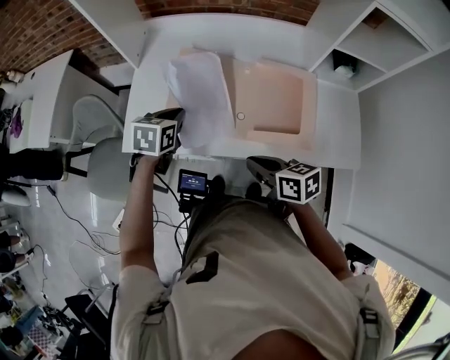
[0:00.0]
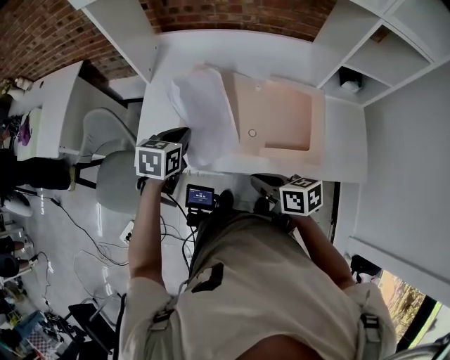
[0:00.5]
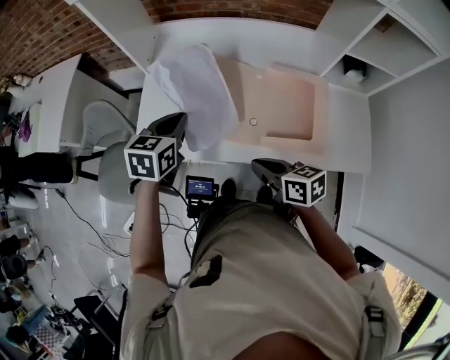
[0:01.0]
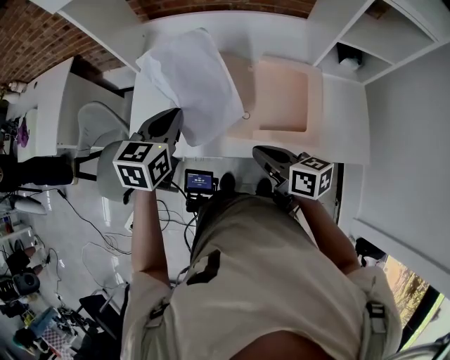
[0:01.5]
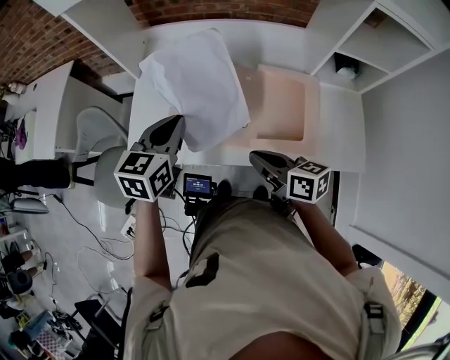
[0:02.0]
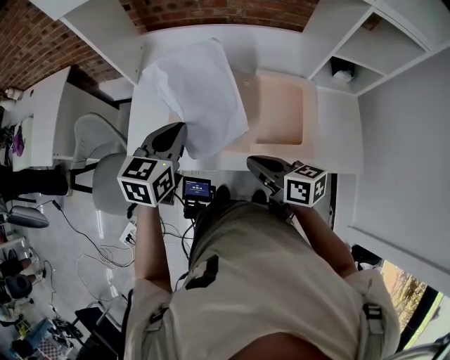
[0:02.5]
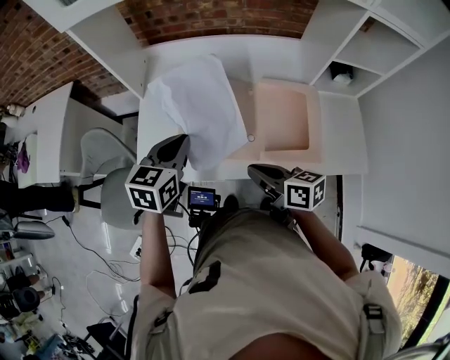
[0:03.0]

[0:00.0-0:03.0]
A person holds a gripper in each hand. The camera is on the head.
0:00.0 to 0:01.5: The left gripper goes some 10 cm upward.
0:01.5 to 0:03.0: The grippers move only a little.

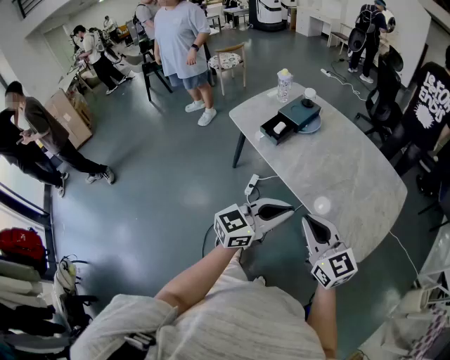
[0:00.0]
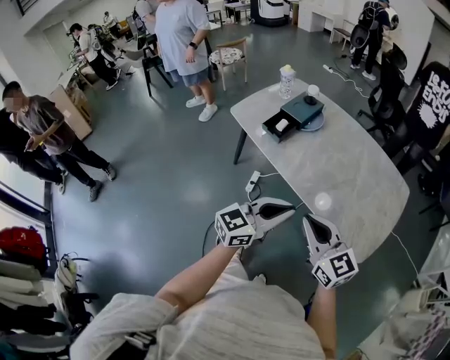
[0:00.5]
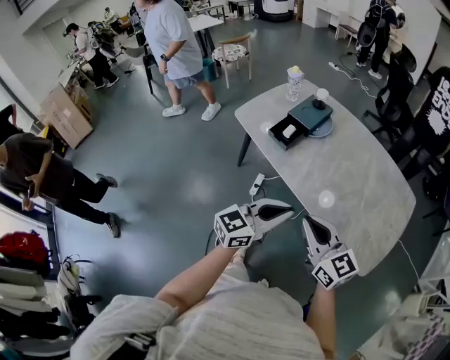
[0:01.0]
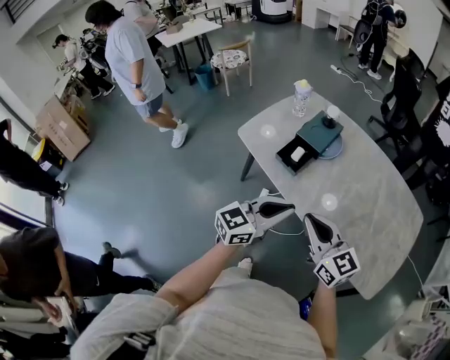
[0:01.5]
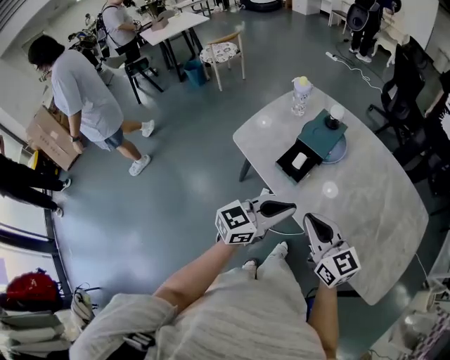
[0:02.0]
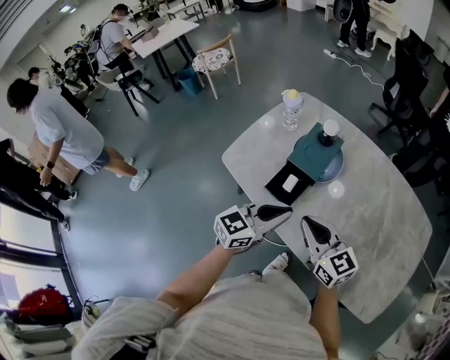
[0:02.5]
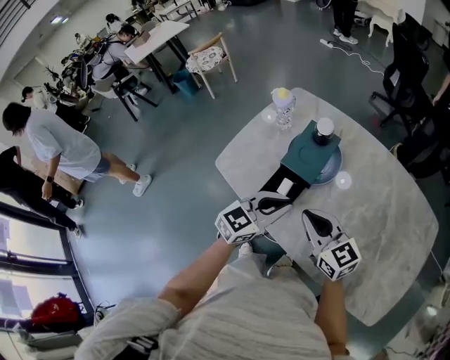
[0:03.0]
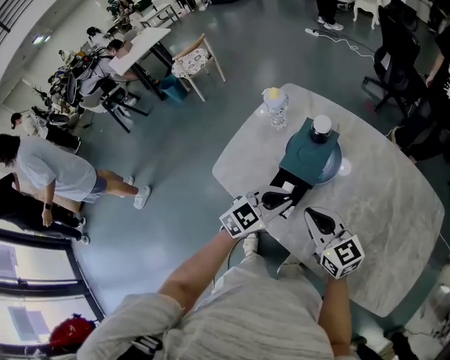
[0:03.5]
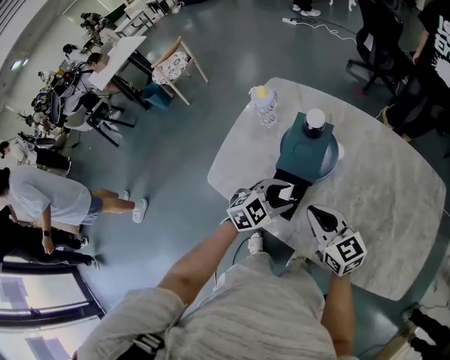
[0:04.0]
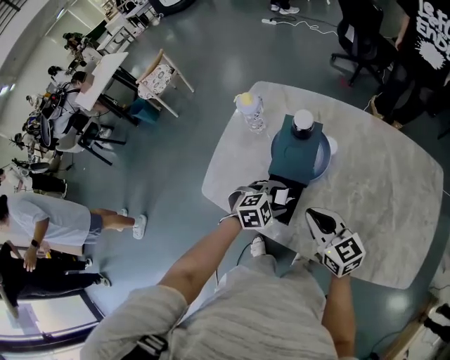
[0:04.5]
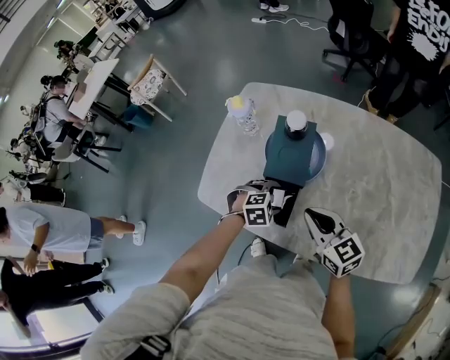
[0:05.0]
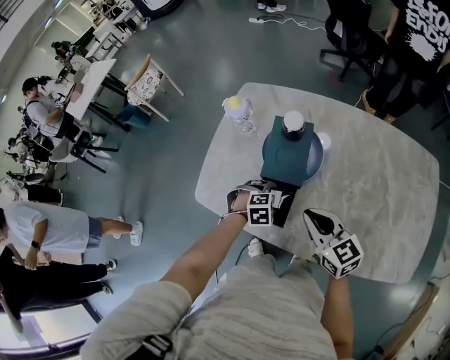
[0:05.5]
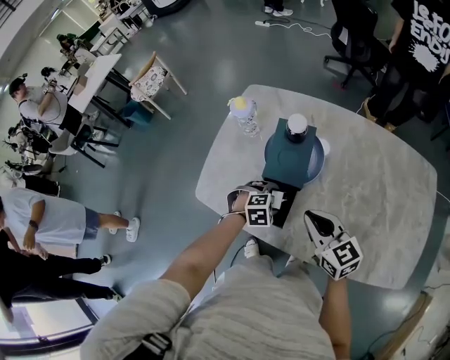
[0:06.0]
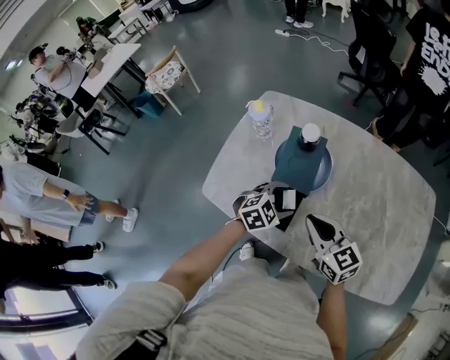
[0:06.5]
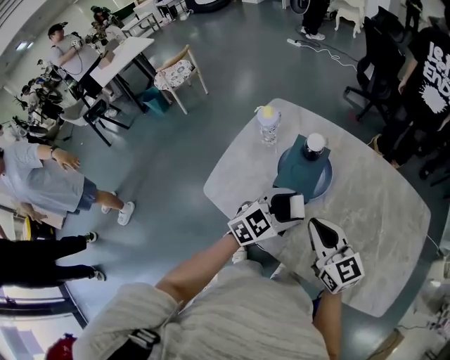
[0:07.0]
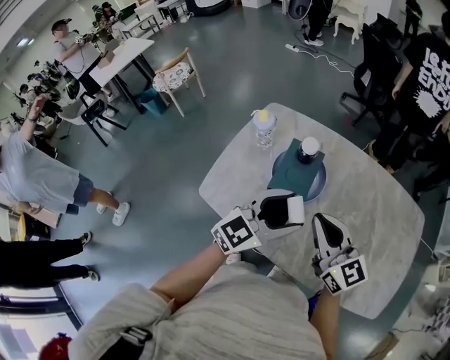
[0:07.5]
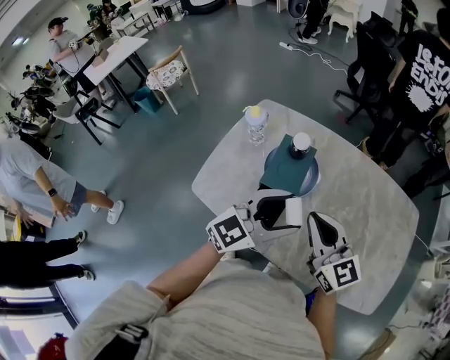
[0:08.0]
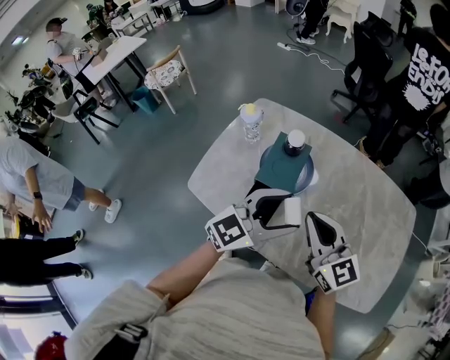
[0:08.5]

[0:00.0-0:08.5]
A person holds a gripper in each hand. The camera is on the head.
0:00.0 to 0:02.0: Both grippers travel together forward and to the left, approximately 30 cm.
0:02.0 to 0:04.0: The right gripper shifts some 20 cm forward; the left gripper is displaced forward and downward by about 30 cm, points its fingers some 40 degrees further downward, and opens its fingers.
0:04.0 to 0:06.5: The left gripper moves roughly 15 cm downward and comes back, and opens.
0:06.5 to 0:08.5: The right gripper shifts roughly 10 cm upward; the left gripper moves upward, roughly 20 cm, and tips its fingers upward by about 40 degrees.

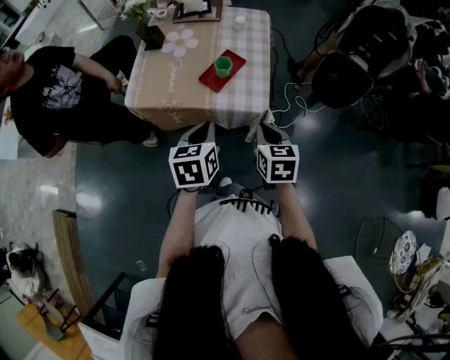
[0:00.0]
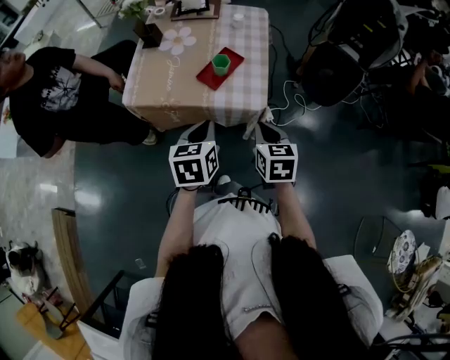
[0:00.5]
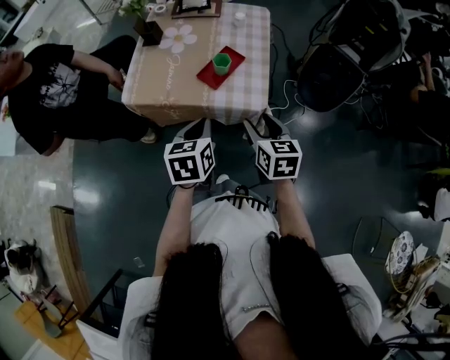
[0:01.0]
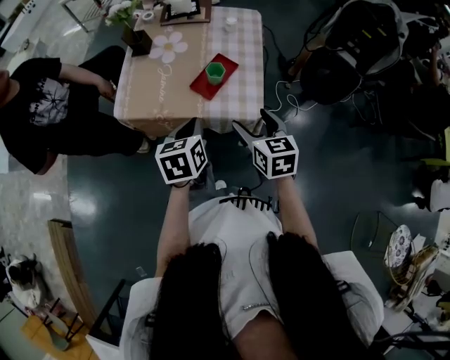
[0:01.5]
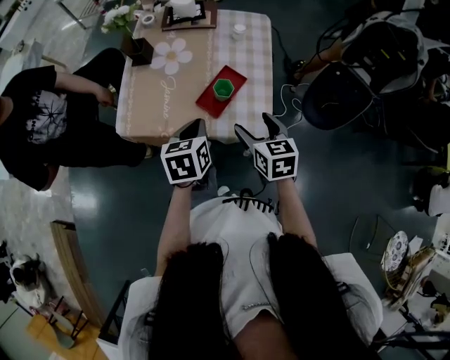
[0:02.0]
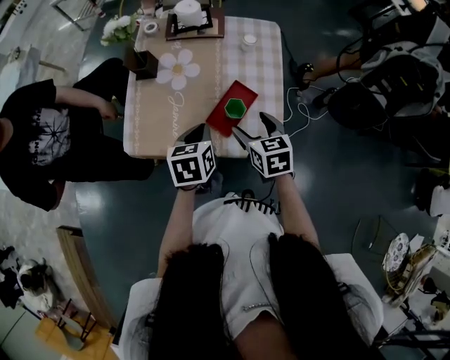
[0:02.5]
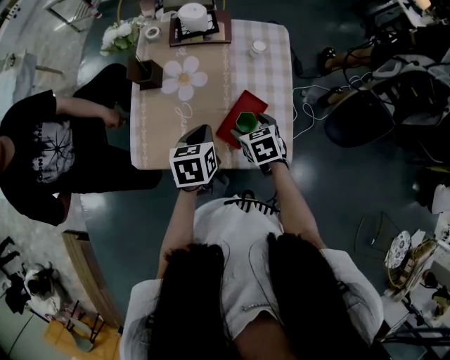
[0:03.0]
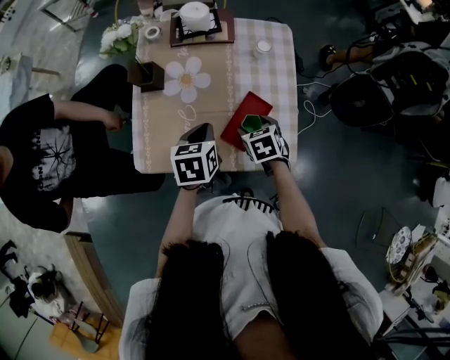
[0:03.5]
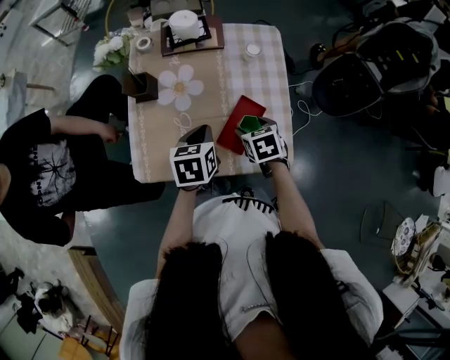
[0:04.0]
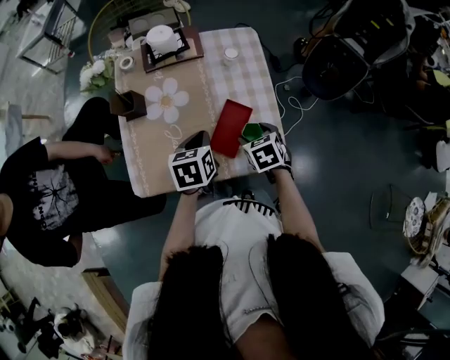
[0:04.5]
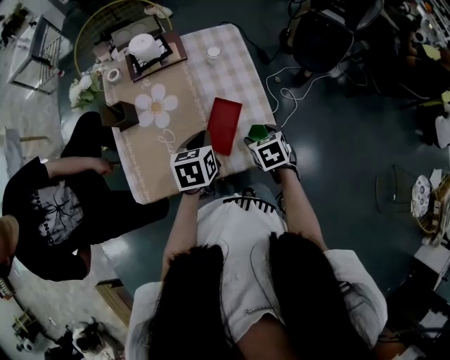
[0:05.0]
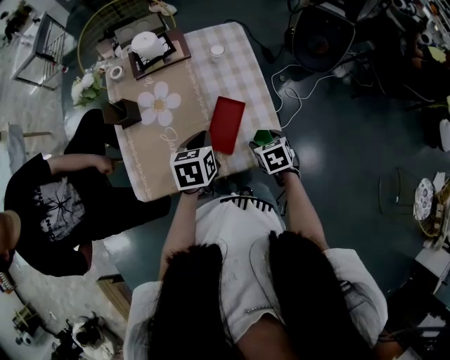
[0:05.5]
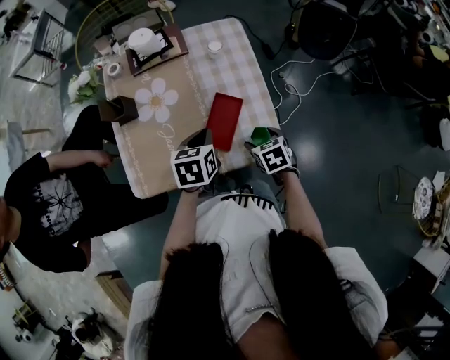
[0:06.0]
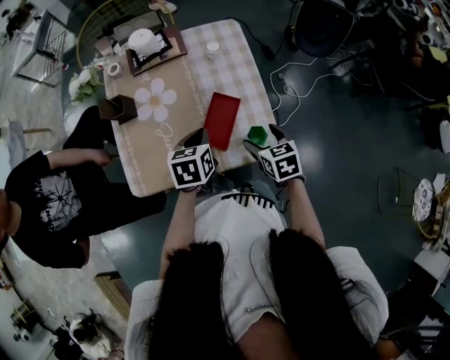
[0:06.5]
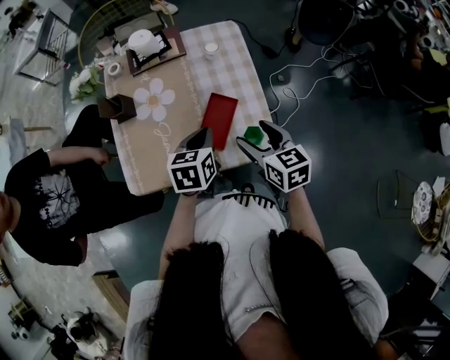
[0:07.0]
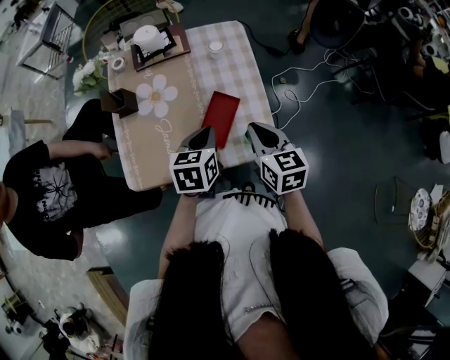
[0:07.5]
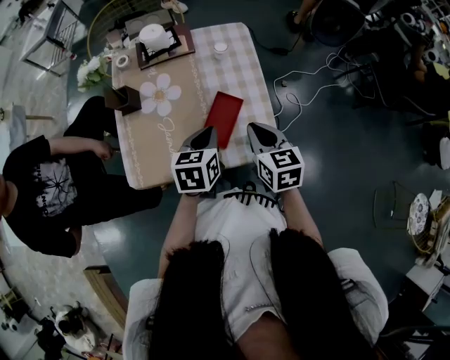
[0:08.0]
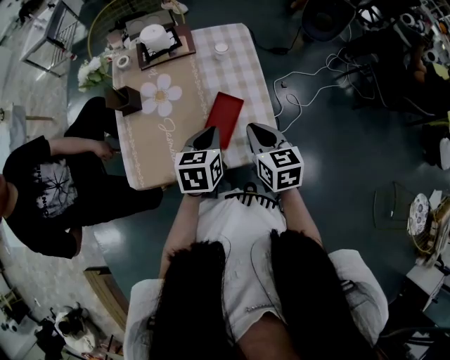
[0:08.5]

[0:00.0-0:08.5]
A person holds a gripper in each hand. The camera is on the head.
0:00.0 to 0:02.0: The grippers both shift forward by approximately 15 cm. The right gripper opens its fingers.
0:02.0 to 0:04.0: The right gripper heads forward, downward and to the left, covering approximately 20 cm, and turns by about 20 degrees; the left gripper travels forward by approximately 15 cm.
0:04.0 to 0:06.5: The right gripper travels to the right and backward by roughly 10 cm; the left gripper heads to the right, covering roughly 5 cm.
0:06.5 to 0:08.5: The right gripper moves upward, about 10 cm, and closes its fingers.

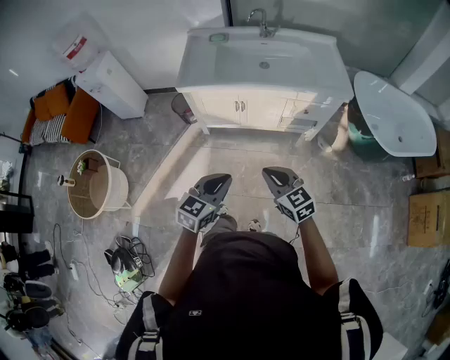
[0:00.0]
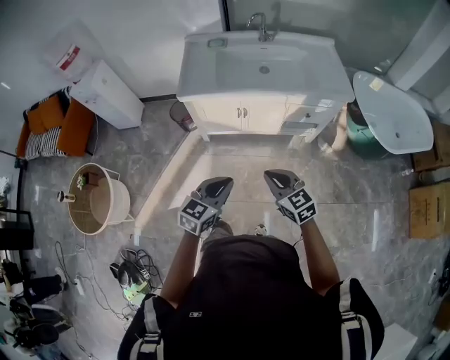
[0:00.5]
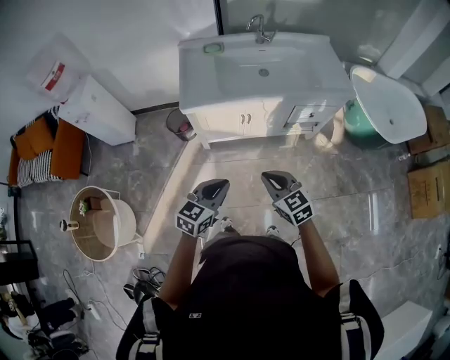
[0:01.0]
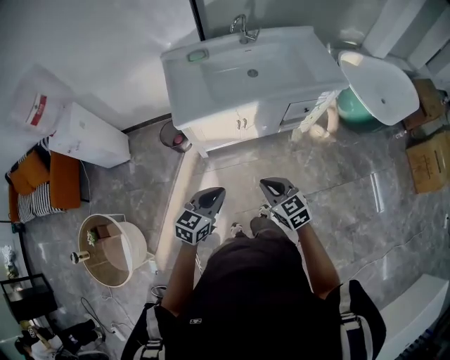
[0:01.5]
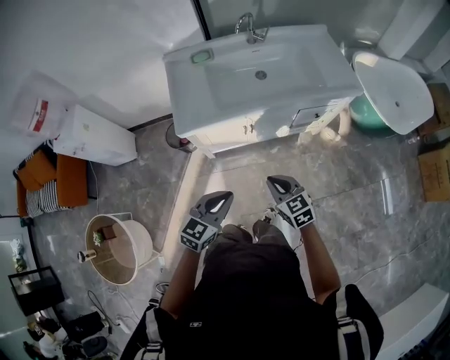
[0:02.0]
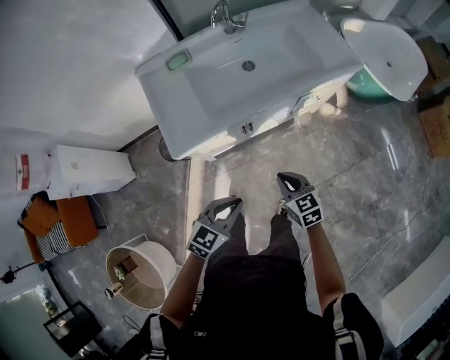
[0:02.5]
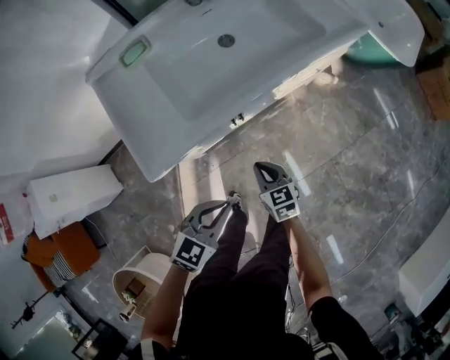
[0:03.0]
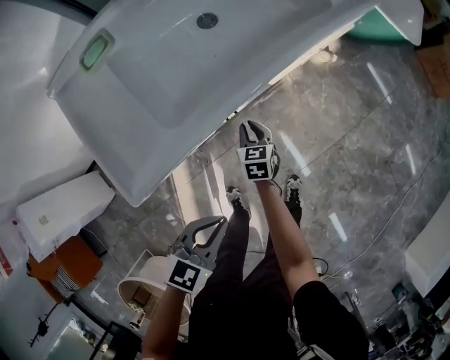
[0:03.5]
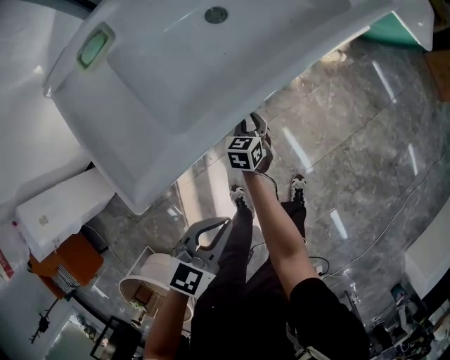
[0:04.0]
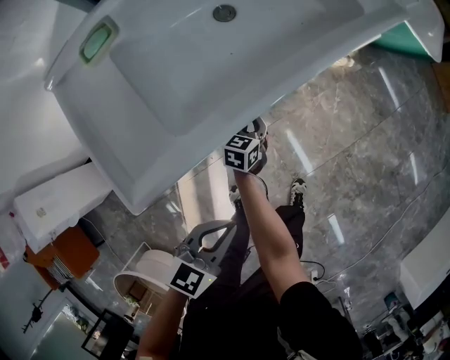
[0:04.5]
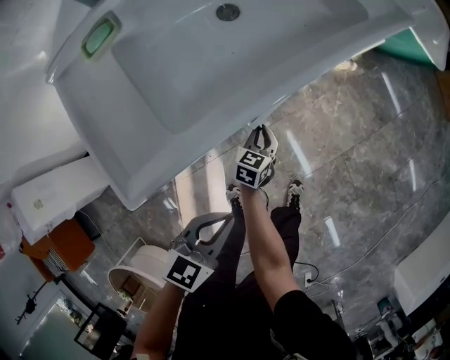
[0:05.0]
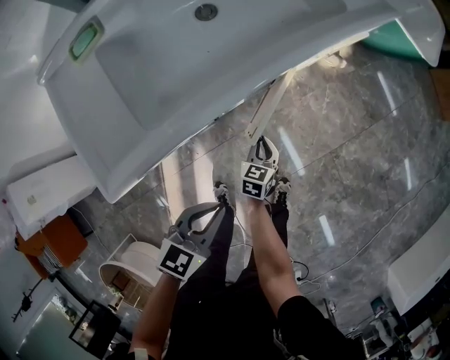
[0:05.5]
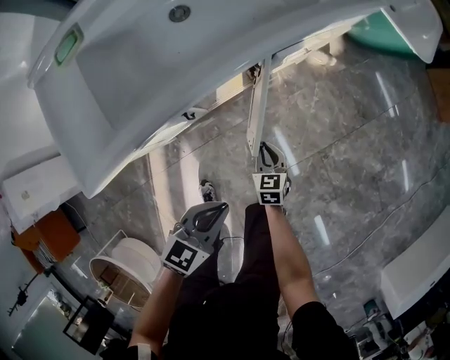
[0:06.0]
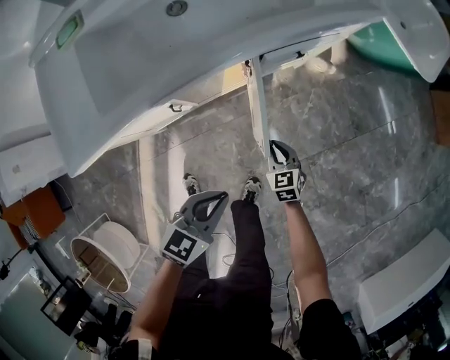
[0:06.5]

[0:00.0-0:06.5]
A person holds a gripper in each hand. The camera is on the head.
0:00.0 to 0:02.0: The left gripper travels forward and to the left by about 25 cm. Meanwhile the right gripper goes some 25 cm forward, to the left and downward, and rotates approximately 20 degrees.
0:02.0 to 0:04.5: The left gripper heads downward, covering approximately 20 cm, and turns by about 30 degrees. Meanwhile the right gripper shifts about 40 cm downward, and rotates some 70 degrees.
0:04.5 to 0:06.5: The left gripper ends up some 20 cm from where it was. The right gripper changes place by about 30 cm, and changes its angle by about 40 degrees.
